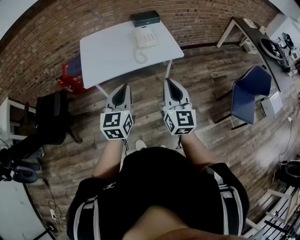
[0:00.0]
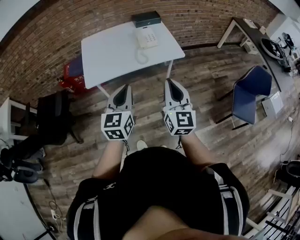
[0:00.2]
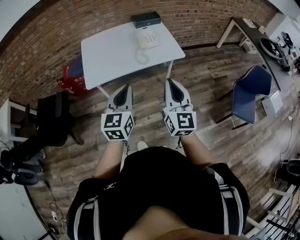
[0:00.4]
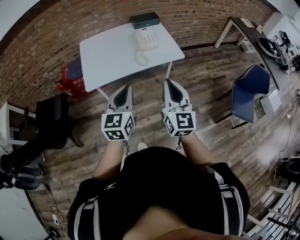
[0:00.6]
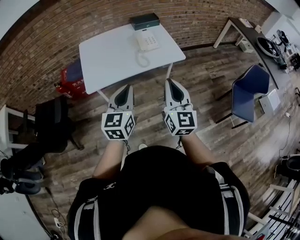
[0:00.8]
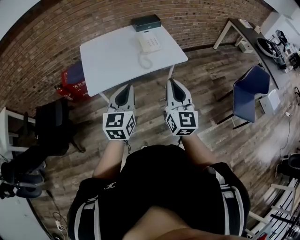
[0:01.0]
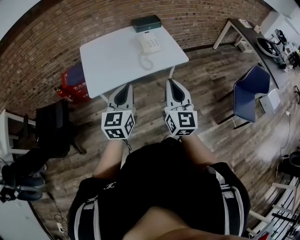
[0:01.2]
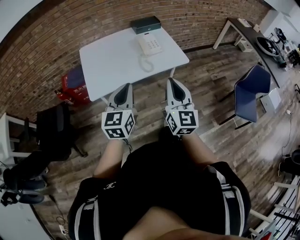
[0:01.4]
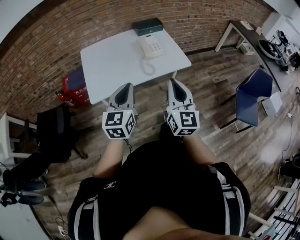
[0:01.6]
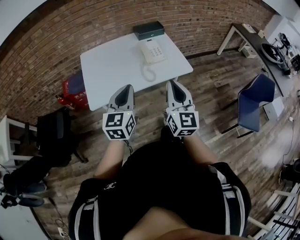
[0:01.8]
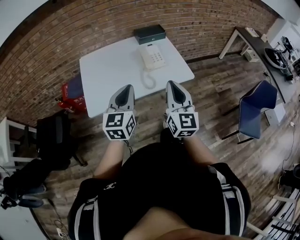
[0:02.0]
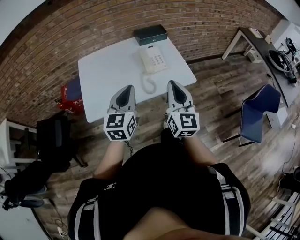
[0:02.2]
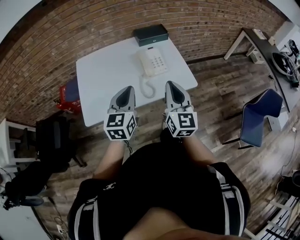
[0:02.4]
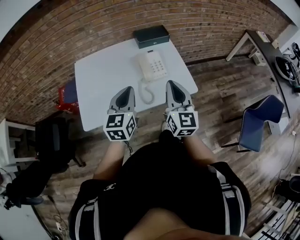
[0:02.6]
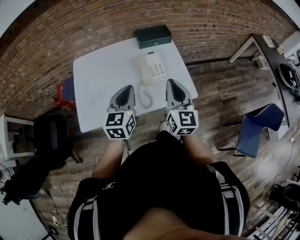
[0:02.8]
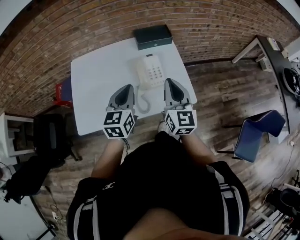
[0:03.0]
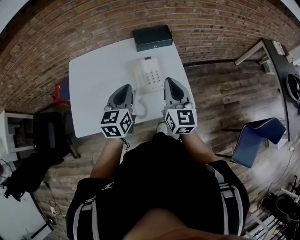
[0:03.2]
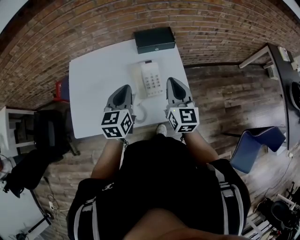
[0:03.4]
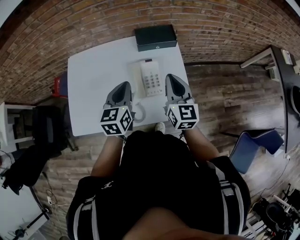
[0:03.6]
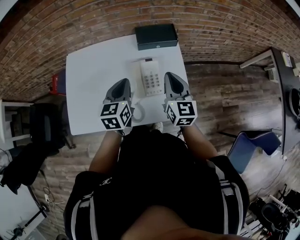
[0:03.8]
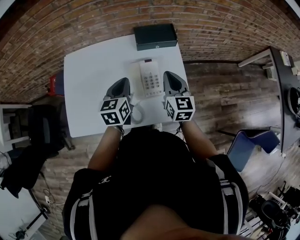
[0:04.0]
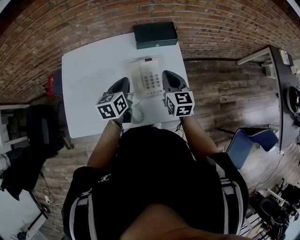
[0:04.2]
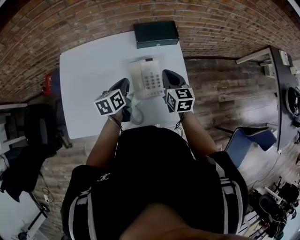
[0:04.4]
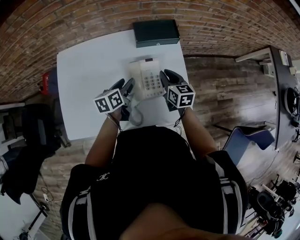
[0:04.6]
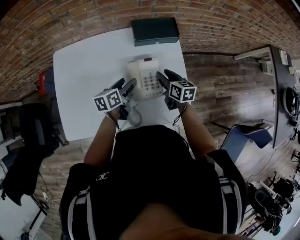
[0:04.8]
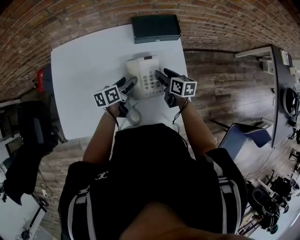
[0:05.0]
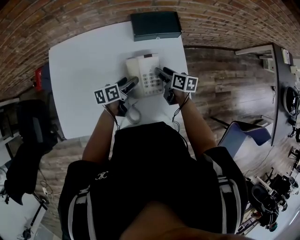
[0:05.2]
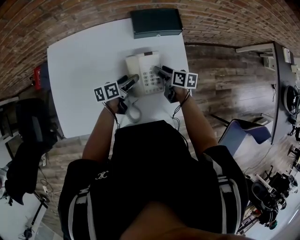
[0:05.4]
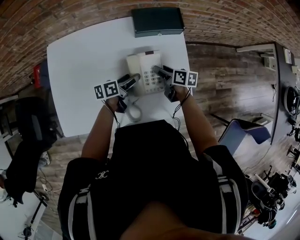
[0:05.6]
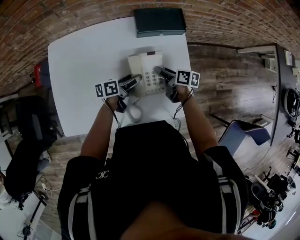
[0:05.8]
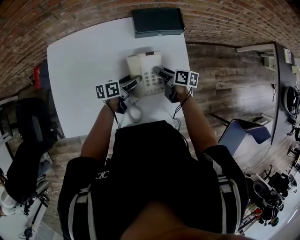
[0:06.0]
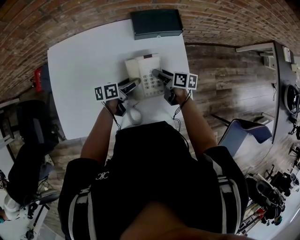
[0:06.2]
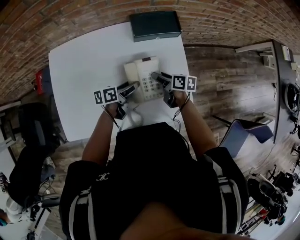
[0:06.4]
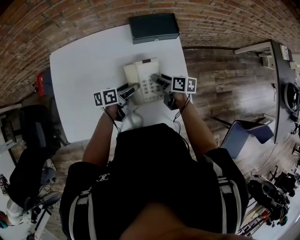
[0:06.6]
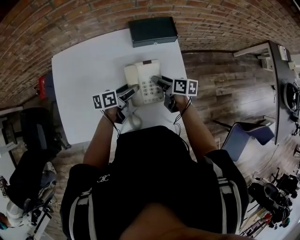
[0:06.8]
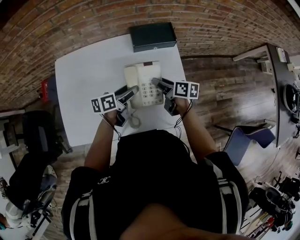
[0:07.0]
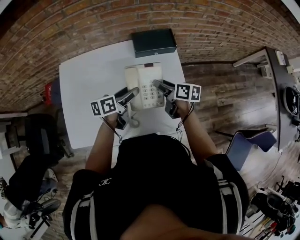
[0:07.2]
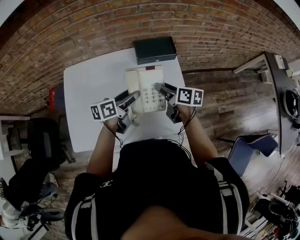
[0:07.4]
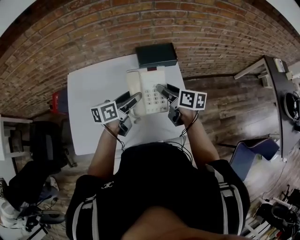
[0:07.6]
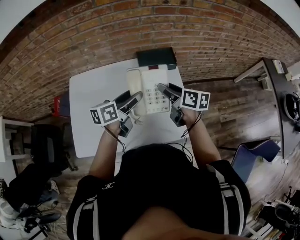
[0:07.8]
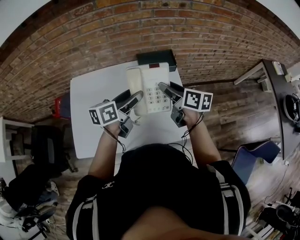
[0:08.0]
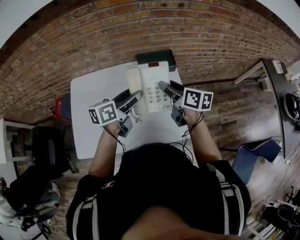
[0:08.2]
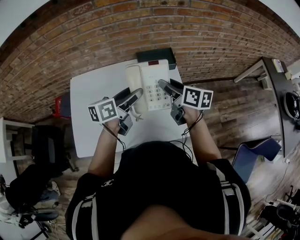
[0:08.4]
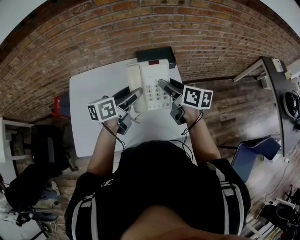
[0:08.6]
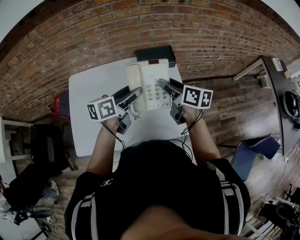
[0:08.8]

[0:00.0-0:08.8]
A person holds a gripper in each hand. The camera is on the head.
0:00.0 to 0:01.4: The right gripper heads to the left, covering approximately 5 cm. Meanwhile the left gripper shifts roughly 10 cm to the left and forward.
0:01.4 to 0:03.0: The grippers both shift forward by about 35 cm.
0:03.0 to 0:04.4: Both grippers travel together forward and downward, some 25 cm. The right gripper rotates roughly 30 degrees, while the left gripper turns by about 30 degrees.
0:04.4 to 0:05.8: Both grippers travel together downward, roughly 15 cm. The left gripper swivels about 40 degrees, and opens up, while the right gripper rotates around the line of its fingers by roughly 40 degrees, clockwise from behind, and opens.
0:05.8 to 0:07.4: Both grippers move upward, some 15 cm.
0:07.4 to 0:08.8: The two grippers go about 10 cm upward.

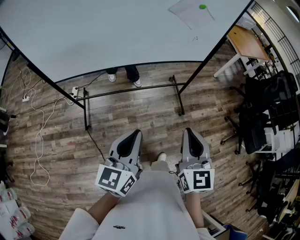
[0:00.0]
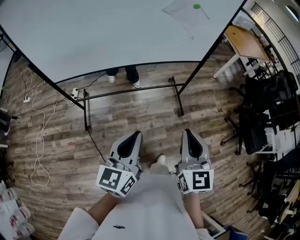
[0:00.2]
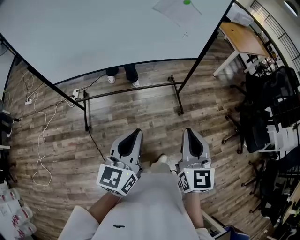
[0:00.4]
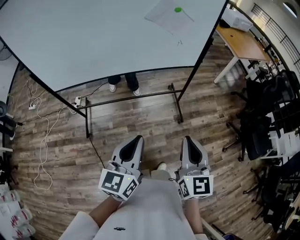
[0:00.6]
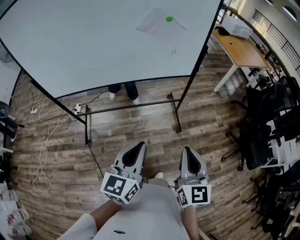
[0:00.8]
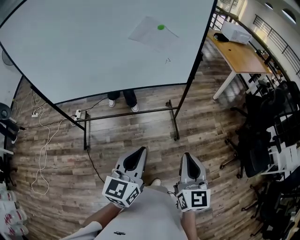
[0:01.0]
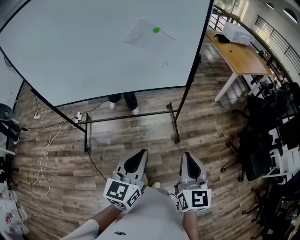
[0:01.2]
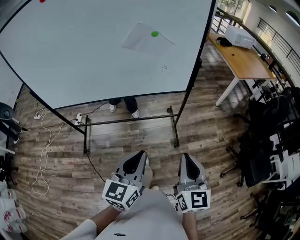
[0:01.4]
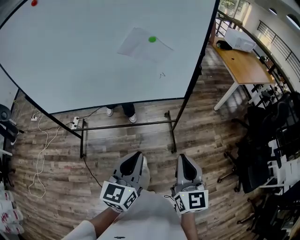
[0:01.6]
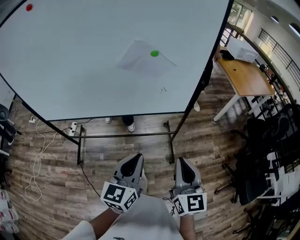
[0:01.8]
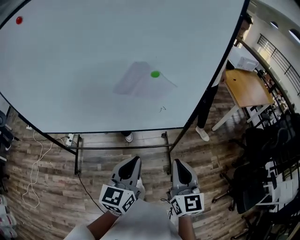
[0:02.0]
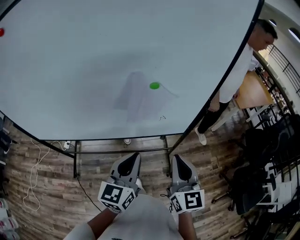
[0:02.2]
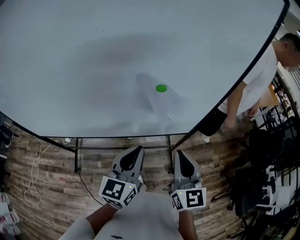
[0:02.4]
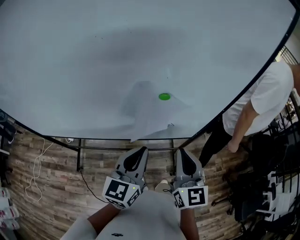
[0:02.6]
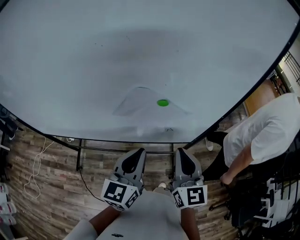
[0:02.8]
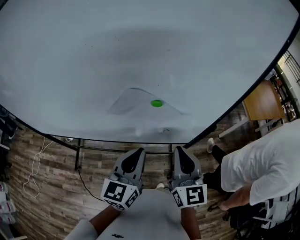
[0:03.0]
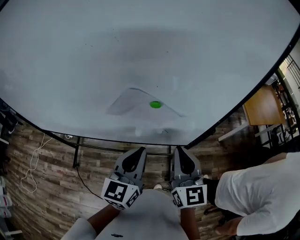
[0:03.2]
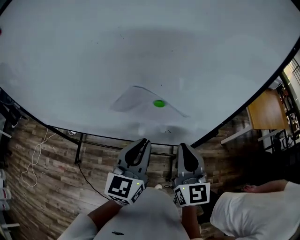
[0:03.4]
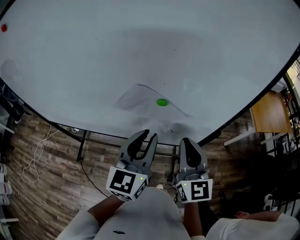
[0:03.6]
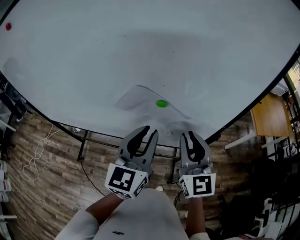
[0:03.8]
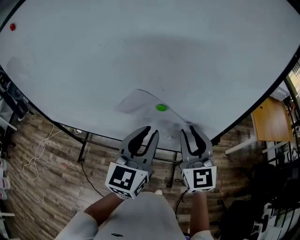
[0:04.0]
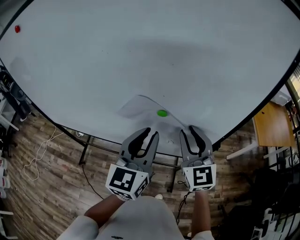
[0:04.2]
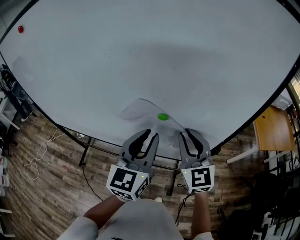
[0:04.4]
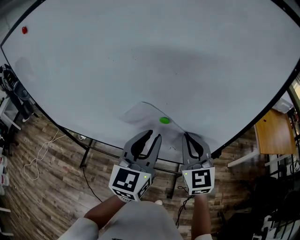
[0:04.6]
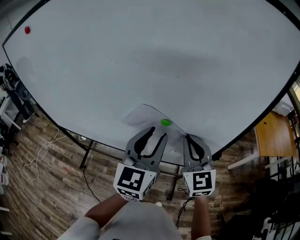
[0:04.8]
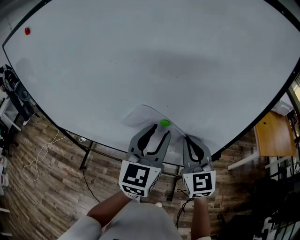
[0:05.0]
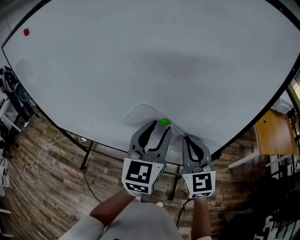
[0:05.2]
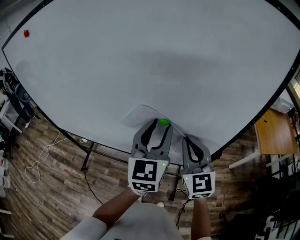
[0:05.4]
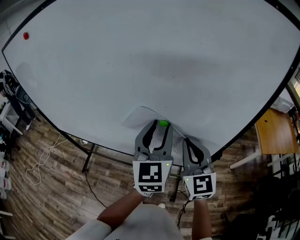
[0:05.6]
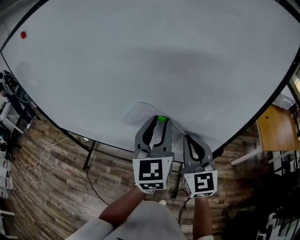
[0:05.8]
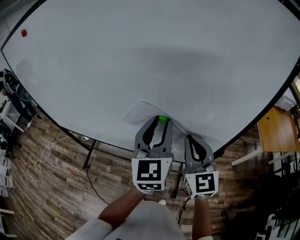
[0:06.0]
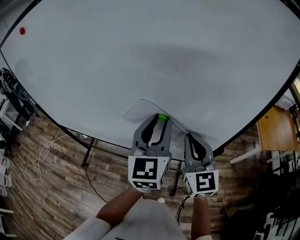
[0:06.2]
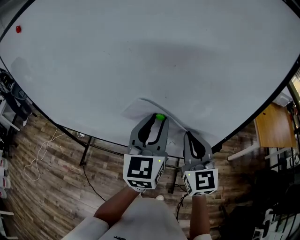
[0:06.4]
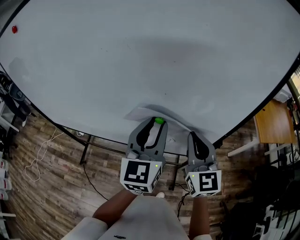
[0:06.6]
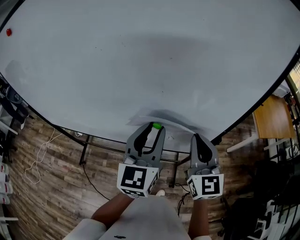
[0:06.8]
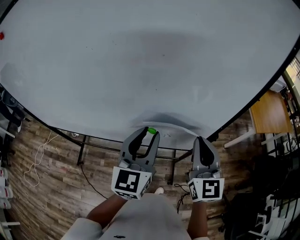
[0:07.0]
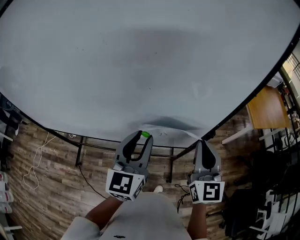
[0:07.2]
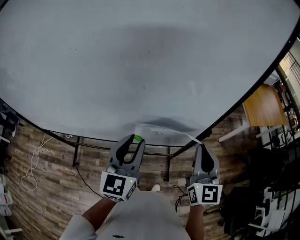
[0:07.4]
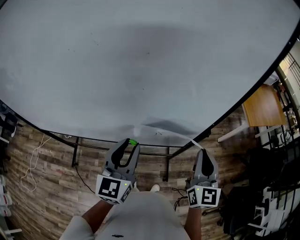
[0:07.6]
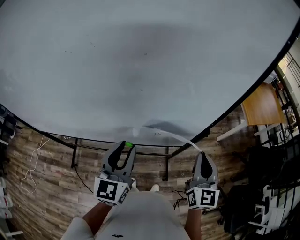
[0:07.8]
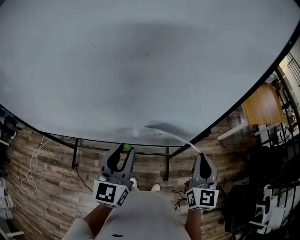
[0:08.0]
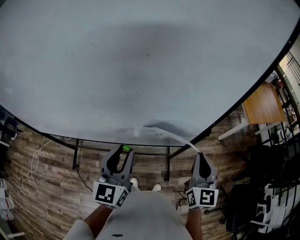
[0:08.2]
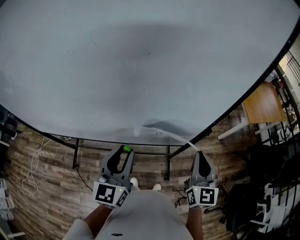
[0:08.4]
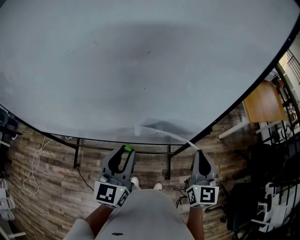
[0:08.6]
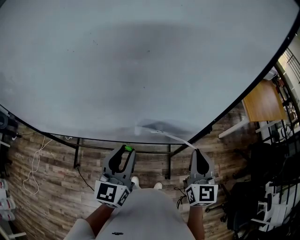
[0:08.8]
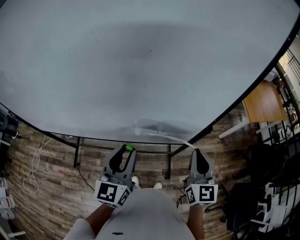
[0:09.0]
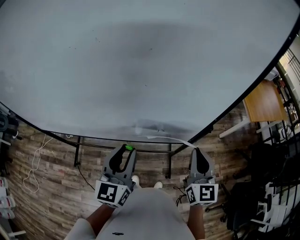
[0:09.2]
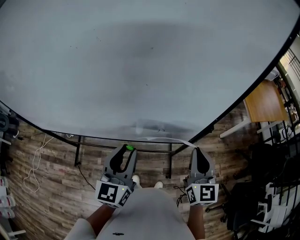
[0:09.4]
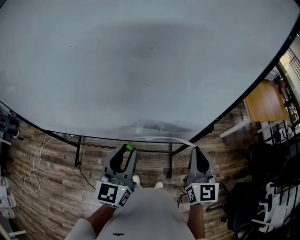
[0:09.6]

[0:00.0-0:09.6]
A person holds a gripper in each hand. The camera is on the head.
0:00.0 to 0:01.6: The grippers both shift to the right and forward by roughly 25 cm.
0:01.6 to 0:03.2: The two grippers go some 35 cm forward.
0:03.2 to 0:04.8: The left gripper is displaced upward and forward by about 10 cm, and opens. Meanwhile the right gripper shifts approximately 10 cm forward, turns by approximately 20 degrees, and opens, then closes once more.
0:04.8 to 0:06.4: The grippers move only a little.
0:06.4 to 0:08.0: The left gripper goes some 10 cm downward and backward. The right gripper is displaced to the right, downward and backward by some 15 cm, and turns by about 30 degrees.
0:08.0 to 0:09.6: The grippers make only small movements.

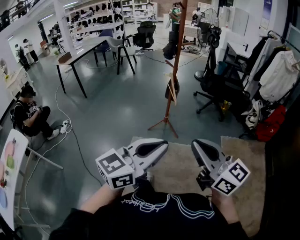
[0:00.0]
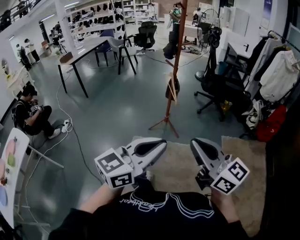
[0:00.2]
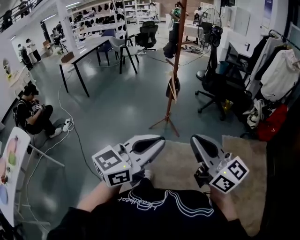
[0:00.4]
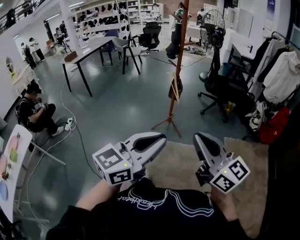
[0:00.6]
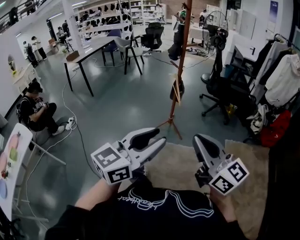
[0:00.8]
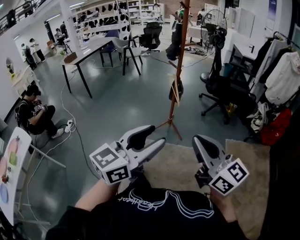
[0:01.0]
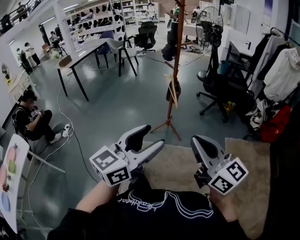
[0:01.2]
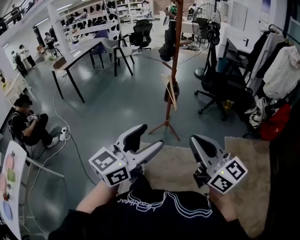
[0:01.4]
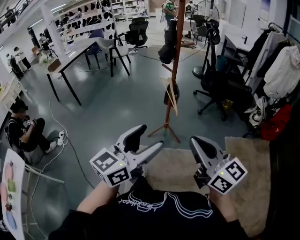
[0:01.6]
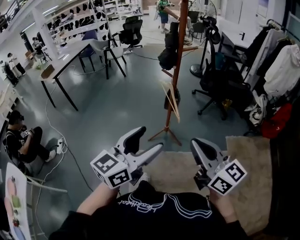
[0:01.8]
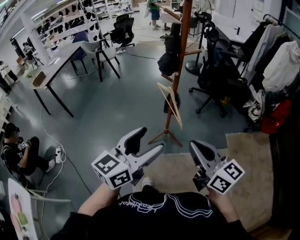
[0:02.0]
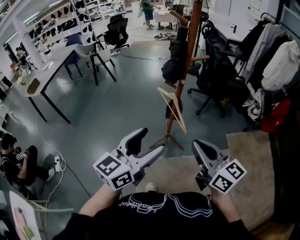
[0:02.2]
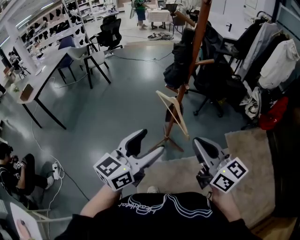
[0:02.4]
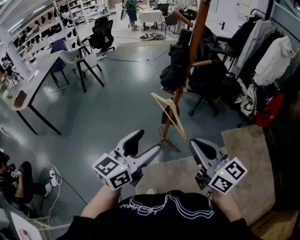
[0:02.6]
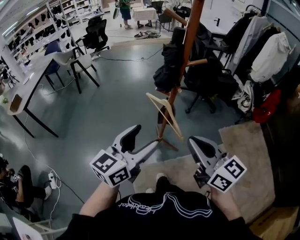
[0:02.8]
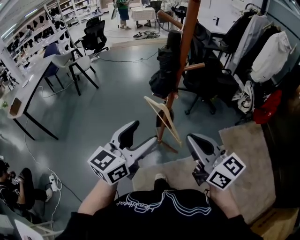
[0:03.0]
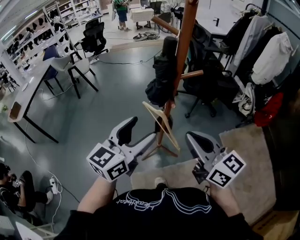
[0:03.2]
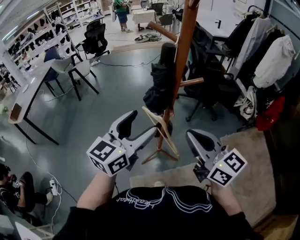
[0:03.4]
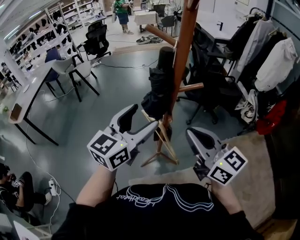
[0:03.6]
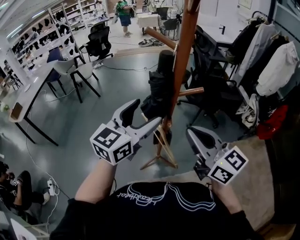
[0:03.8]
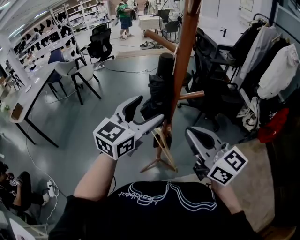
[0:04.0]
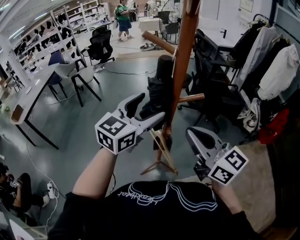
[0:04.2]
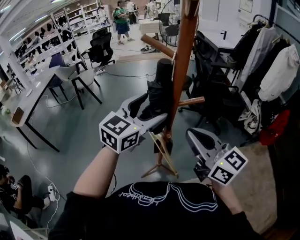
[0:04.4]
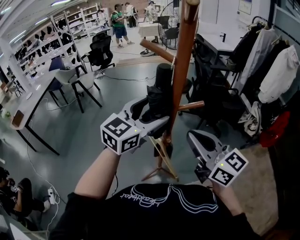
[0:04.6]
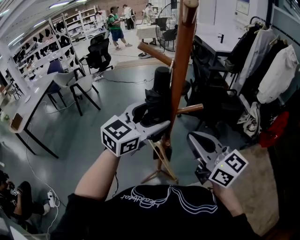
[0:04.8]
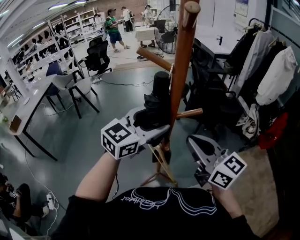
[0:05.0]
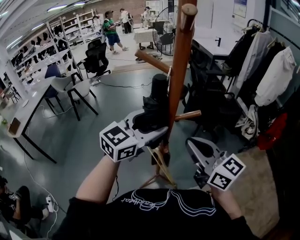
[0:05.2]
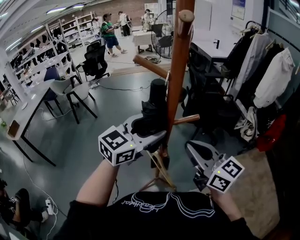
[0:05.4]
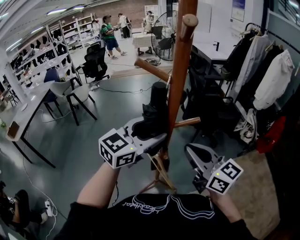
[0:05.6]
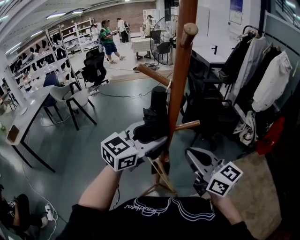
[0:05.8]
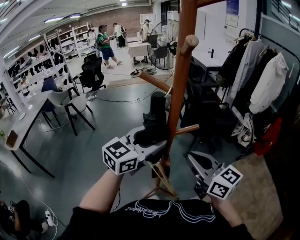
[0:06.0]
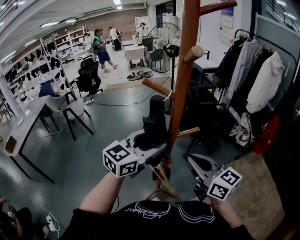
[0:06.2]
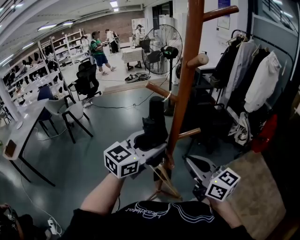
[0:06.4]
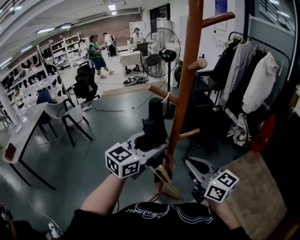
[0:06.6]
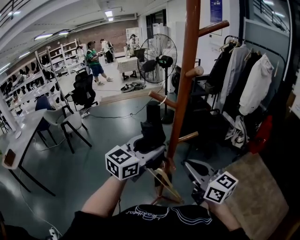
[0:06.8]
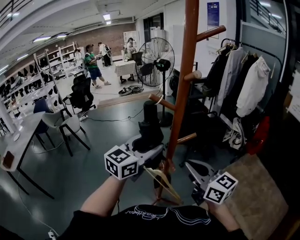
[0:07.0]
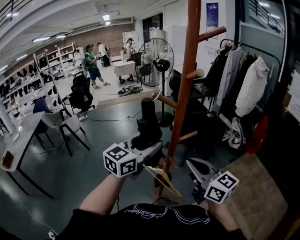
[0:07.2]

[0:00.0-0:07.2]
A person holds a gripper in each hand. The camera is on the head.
0:00.0 to 0:01.4: The two grippers go about 10 cm forward. The left gripper opens.
0:01.4 to 0:02.8: The two grippers go approximately 35 cm forward and to the left. The right gripper rotates roughly 20 degrees.
0:02.8 to 0:04.4: The two grippers go about 20 cm forward. The left gripper turns by some 20 degrees.
0:04.4 to 0:05.8: The grippers stay close to where they were, moving slightly.
0:05.8 to 0:07.2: The right gripper travels backward by some 5 cm. Meanwhile the left gripper shifts by approximately 5 cm.
